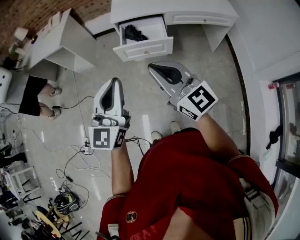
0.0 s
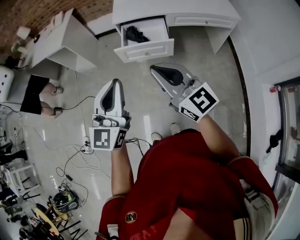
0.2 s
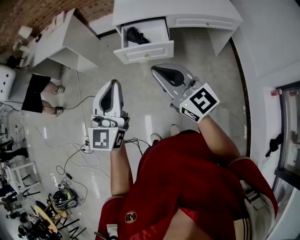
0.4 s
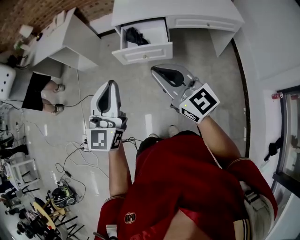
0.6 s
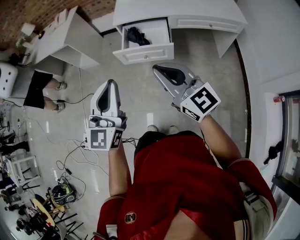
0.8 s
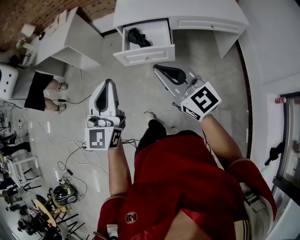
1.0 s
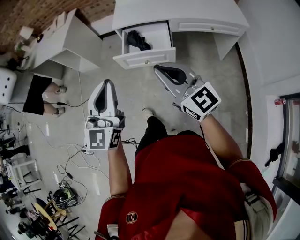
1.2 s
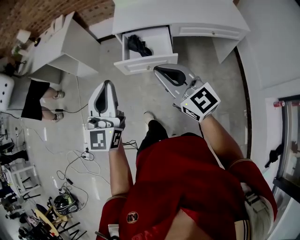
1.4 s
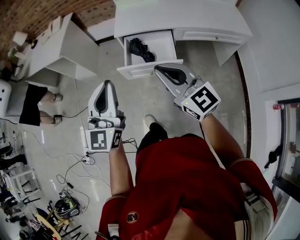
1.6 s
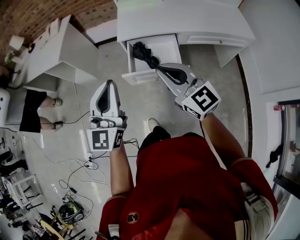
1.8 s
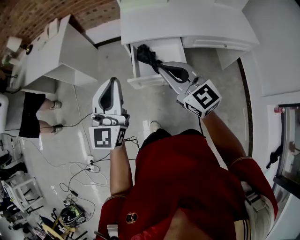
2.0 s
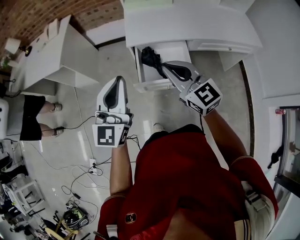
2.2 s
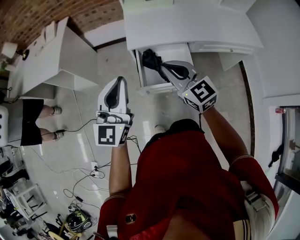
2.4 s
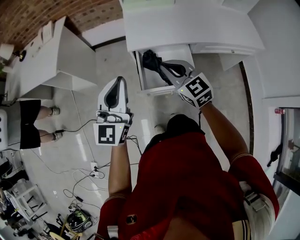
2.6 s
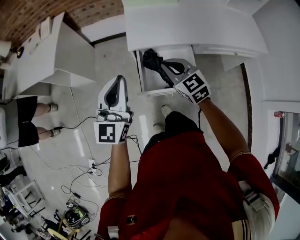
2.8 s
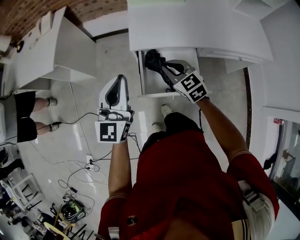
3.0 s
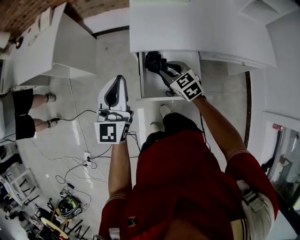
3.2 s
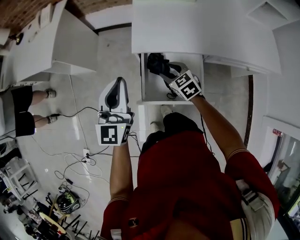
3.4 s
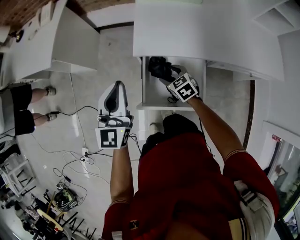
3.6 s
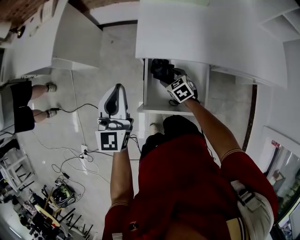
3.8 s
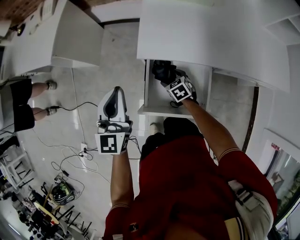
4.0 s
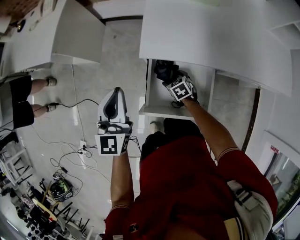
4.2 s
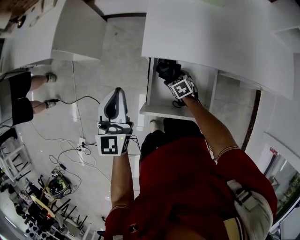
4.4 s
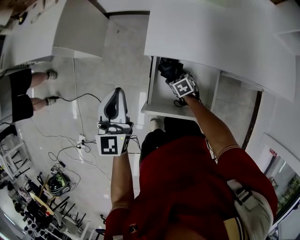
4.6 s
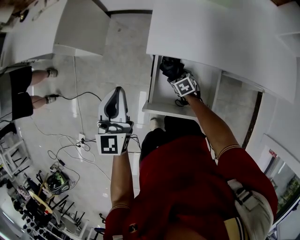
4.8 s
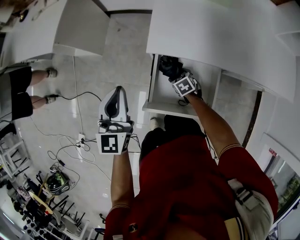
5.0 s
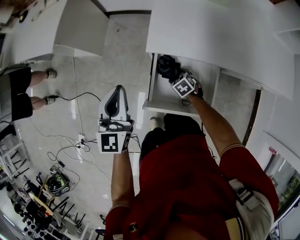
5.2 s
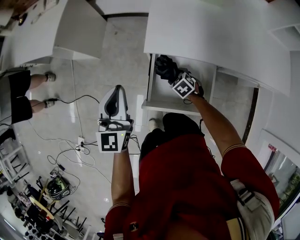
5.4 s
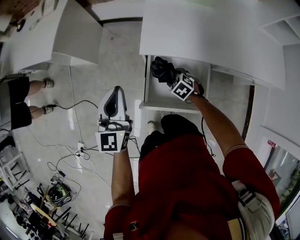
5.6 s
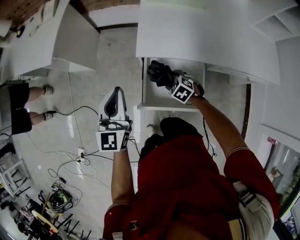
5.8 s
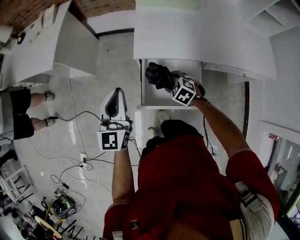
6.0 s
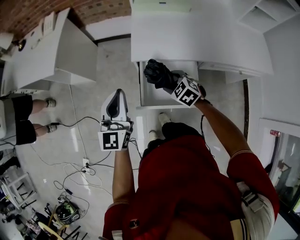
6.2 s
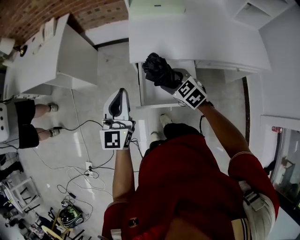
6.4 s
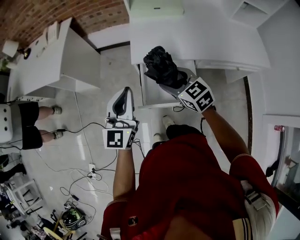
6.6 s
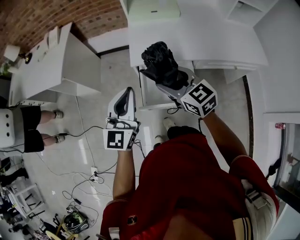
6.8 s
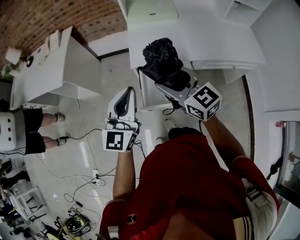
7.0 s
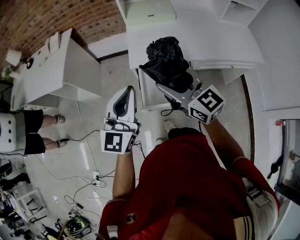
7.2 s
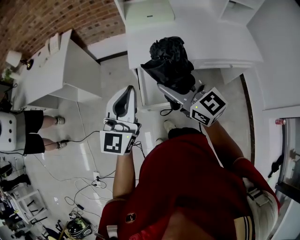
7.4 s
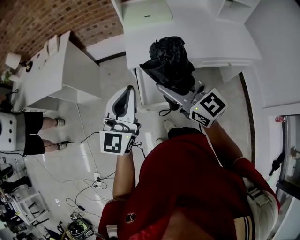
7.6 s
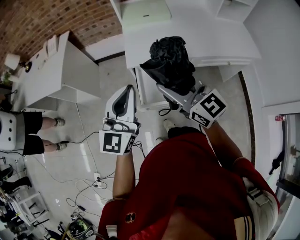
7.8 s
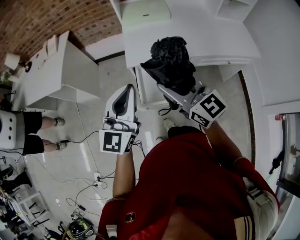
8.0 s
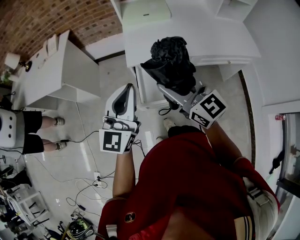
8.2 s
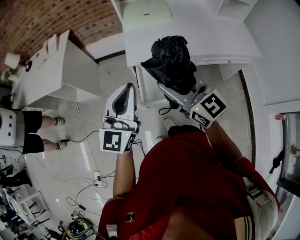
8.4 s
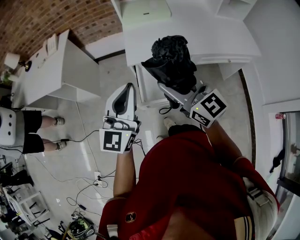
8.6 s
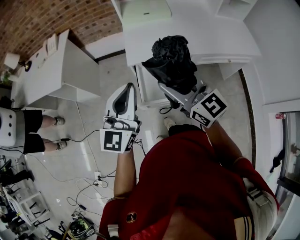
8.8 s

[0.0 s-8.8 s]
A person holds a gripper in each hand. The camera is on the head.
0.0 to 1.4 s: The left gripper goes roughly 10 cm forward; the right gripper is displaced forward and to the right by some 15 cm.
1.4 to 3.0 s: The right gripper travels forward and downward by approximately 40 cm, and angles its fingers downward, by some 30 degrees, while the left gripper goes some 35 cm forward.
3.0 to 4.4 s: The right gripper travels downward by some 30 cm, angles its fingers downward, by some 30 degrees, and opens. Meanwhile the left gripper shifts about 15 cm downward and forward.
4.4 to 5.8 s: The right gripper travels upward by approximately 10 cm, and swivels about 30 degrees; the left gripper changes place by some 5 cm.
5.8 to 7.4 s: The left gripper shifts about 20 cm upward, backward and to the right, and turns by roughly 20 degrees. Meanwhile the right gripper moves upward, roughly 40 cm, and tips its fingers upward by about 60 degrees.
7.4 to 8.8 s: Both grippers stay about where they are.

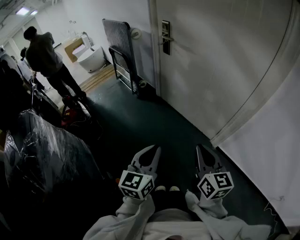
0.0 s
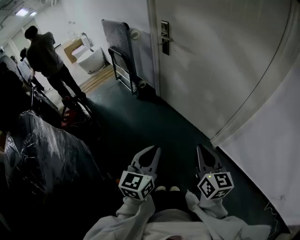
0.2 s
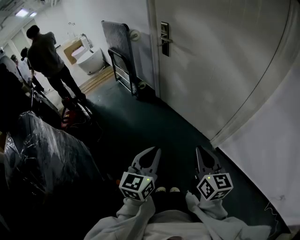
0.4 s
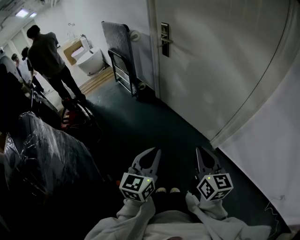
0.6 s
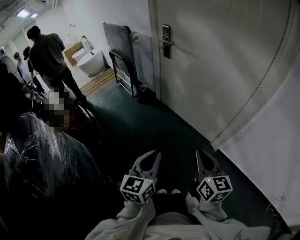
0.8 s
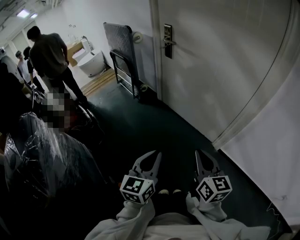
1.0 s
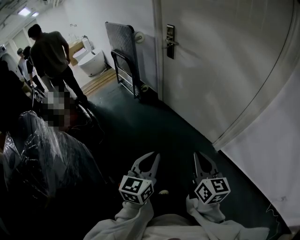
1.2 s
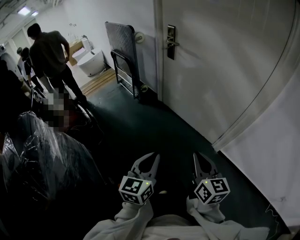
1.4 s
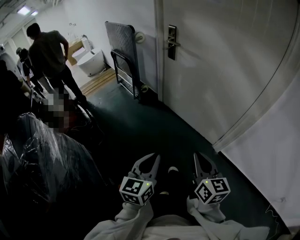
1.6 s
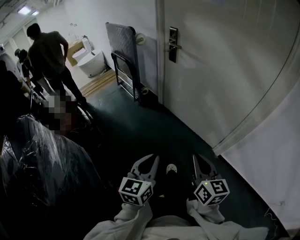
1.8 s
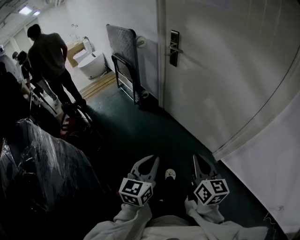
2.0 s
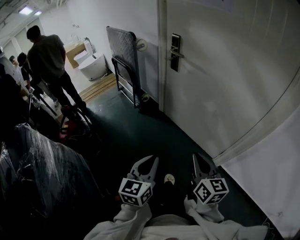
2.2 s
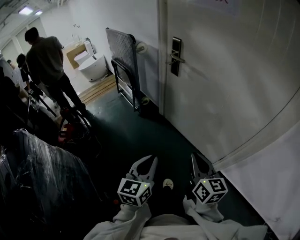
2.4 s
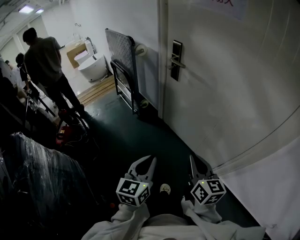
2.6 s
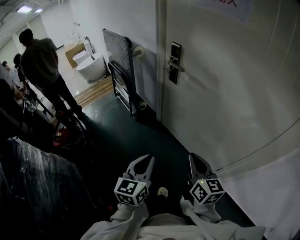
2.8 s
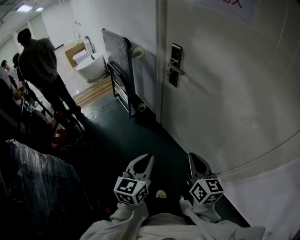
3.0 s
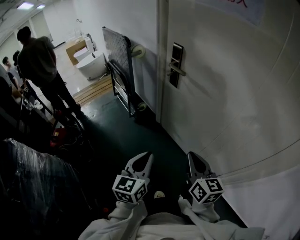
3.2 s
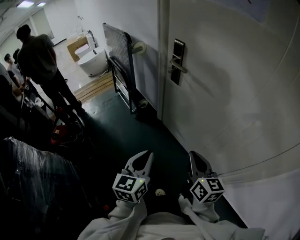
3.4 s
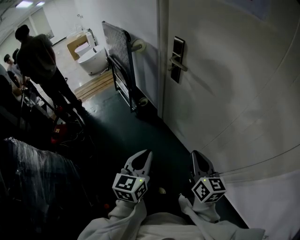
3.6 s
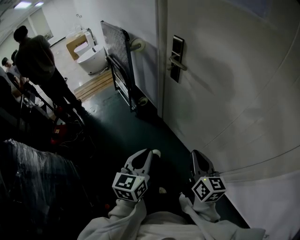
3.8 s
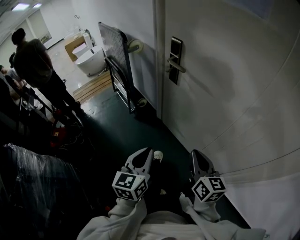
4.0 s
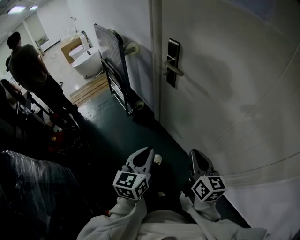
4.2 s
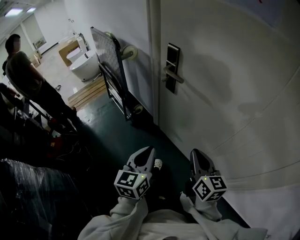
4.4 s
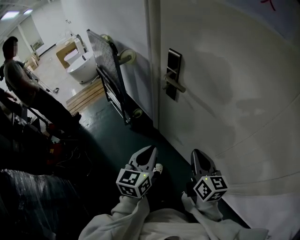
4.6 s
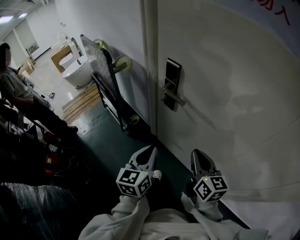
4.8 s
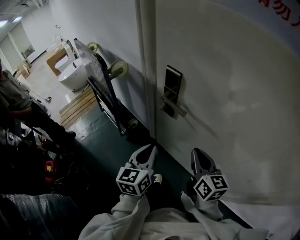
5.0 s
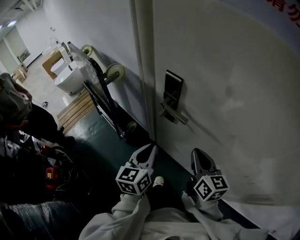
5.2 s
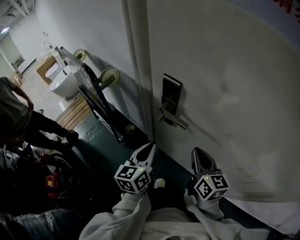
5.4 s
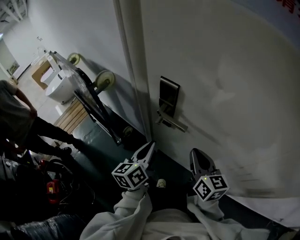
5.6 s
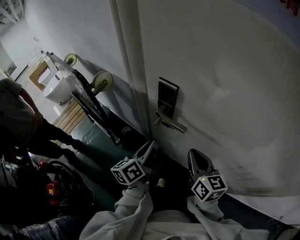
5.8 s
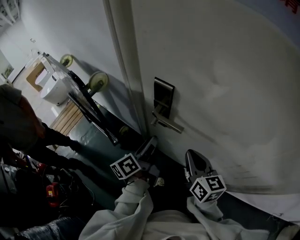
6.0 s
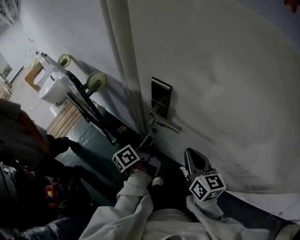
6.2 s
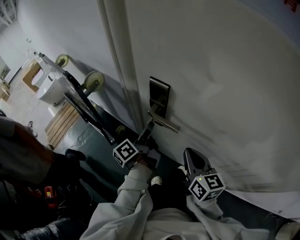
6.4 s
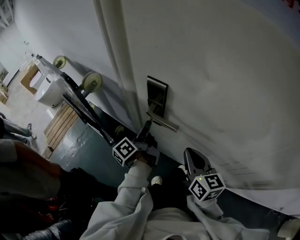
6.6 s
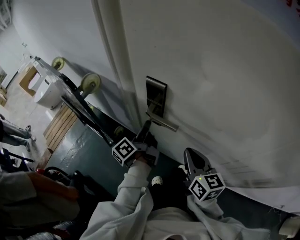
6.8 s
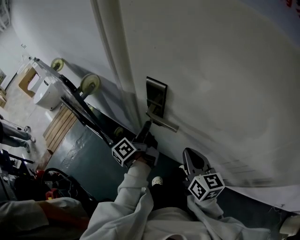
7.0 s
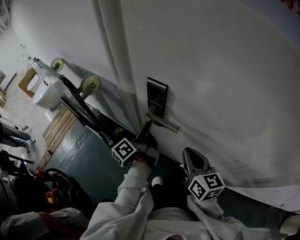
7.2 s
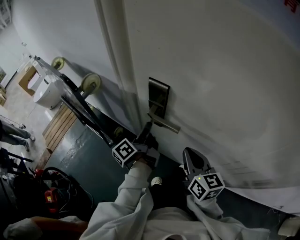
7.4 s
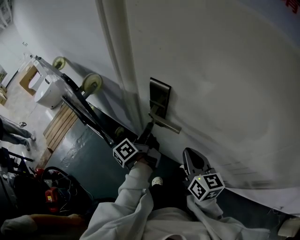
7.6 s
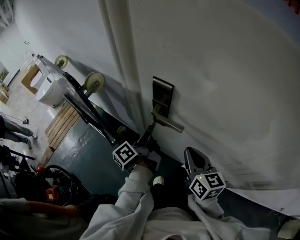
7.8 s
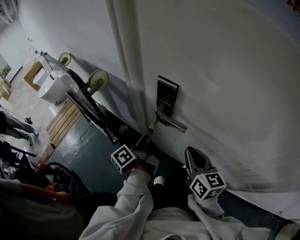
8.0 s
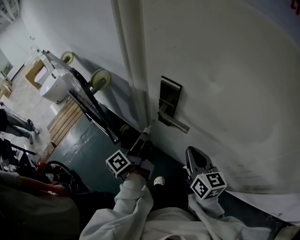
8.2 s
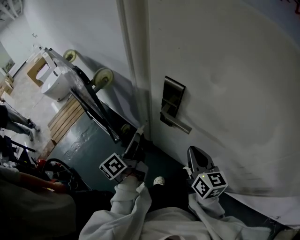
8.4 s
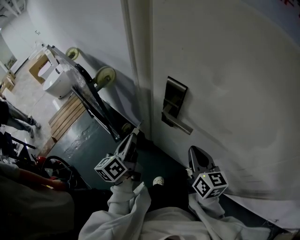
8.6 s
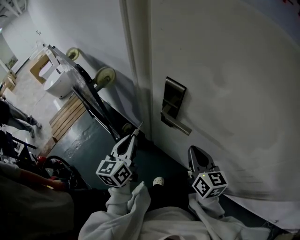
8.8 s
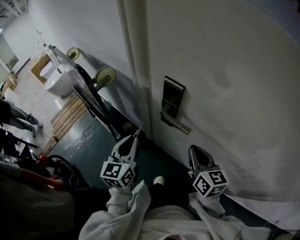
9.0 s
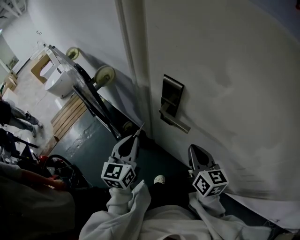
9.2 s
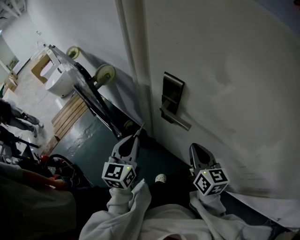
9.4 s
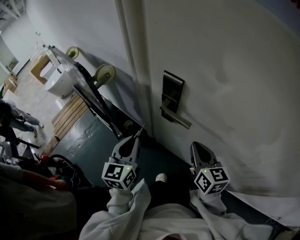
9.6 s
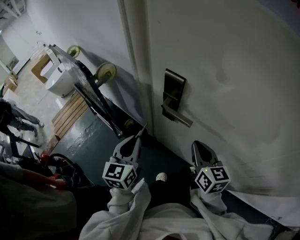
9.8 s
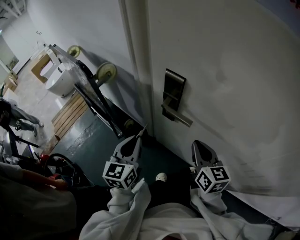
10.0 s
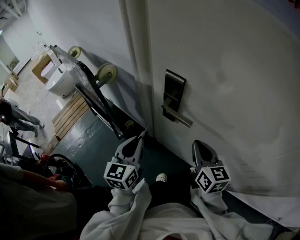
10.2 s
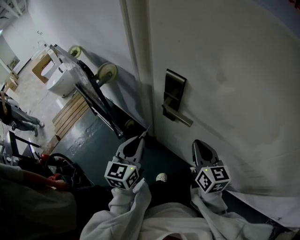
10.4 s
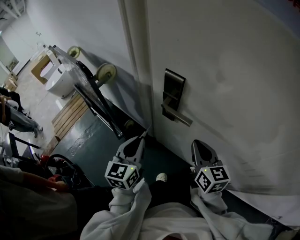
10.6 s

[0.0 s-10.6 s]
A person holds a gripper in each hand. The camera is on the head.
0.0 to 1.6 s: Both grippers move to the left, roughly 5 cm.
1.6 to 3.0 s: The grippers both shift forward by roughly 30 cm.
3.0 to 4.6 s: Both grippers move forward, some 20 cm.
4.6 to 6.0 s: The right gripper goes about 15 cm forward. Meanwhile the left gripper is displaced forward by approximately 25 cm, rolls counterclockwise, seen from behind, by some 50 degrees, and opens.
6.0 to 7.6 s: The left gripper goes approximately 5 cm forward, and closes up.
7.6 to 9.0 s: The left gripper is displaced to the left and backward by about 10 cm, and twists roughly 70 degrees clockwise, seen from behind.
9.0 to 10.6 s: The grippers make only small movements.

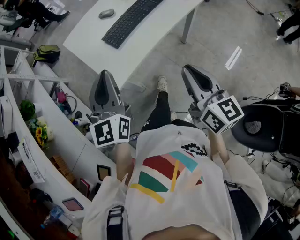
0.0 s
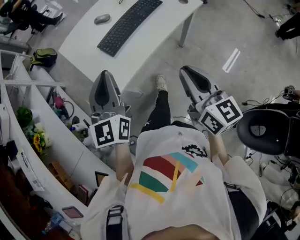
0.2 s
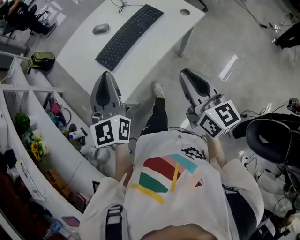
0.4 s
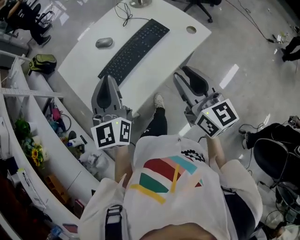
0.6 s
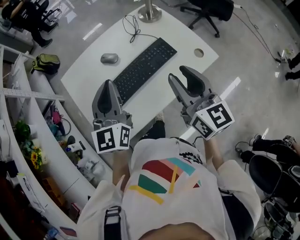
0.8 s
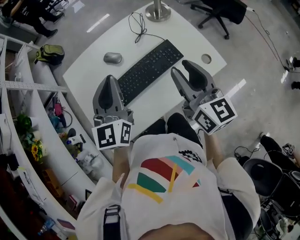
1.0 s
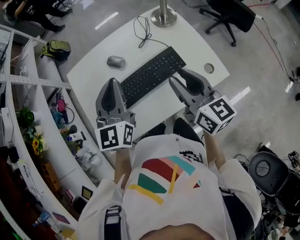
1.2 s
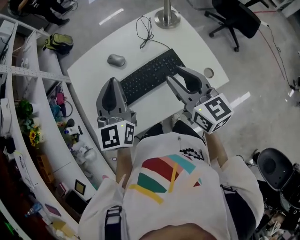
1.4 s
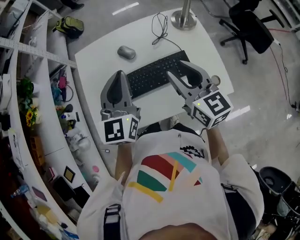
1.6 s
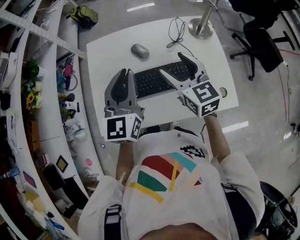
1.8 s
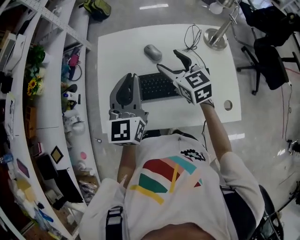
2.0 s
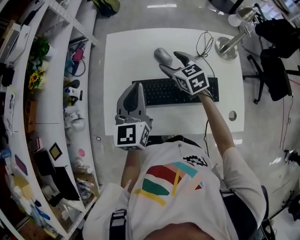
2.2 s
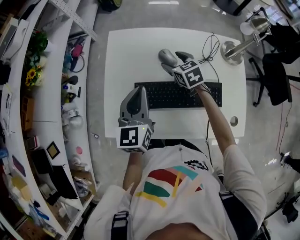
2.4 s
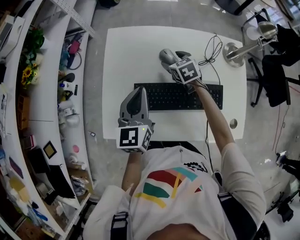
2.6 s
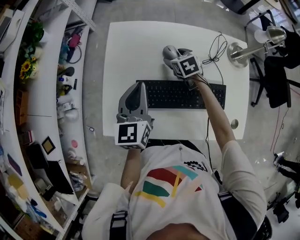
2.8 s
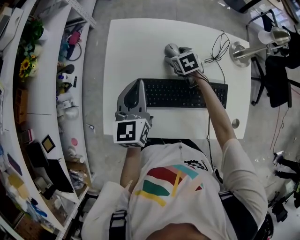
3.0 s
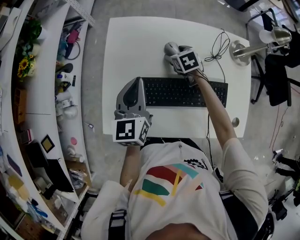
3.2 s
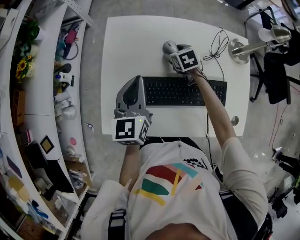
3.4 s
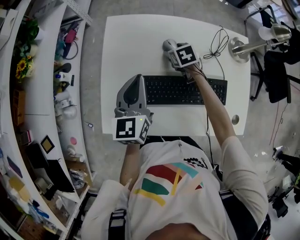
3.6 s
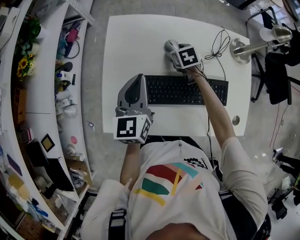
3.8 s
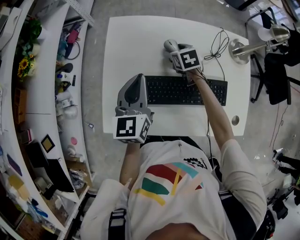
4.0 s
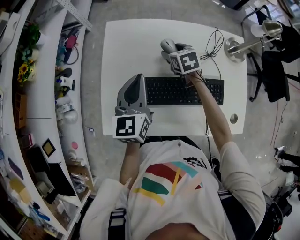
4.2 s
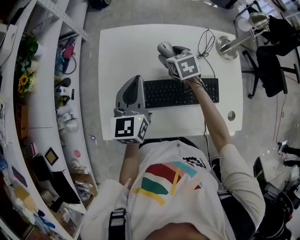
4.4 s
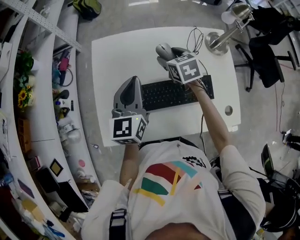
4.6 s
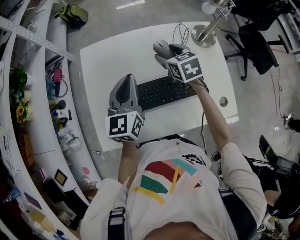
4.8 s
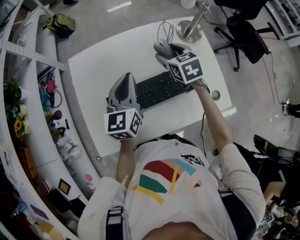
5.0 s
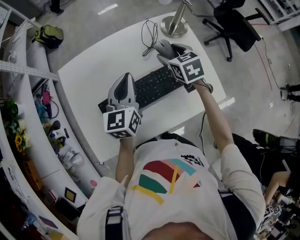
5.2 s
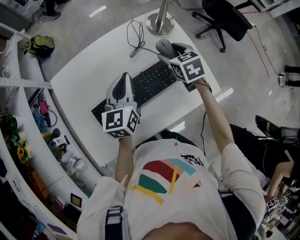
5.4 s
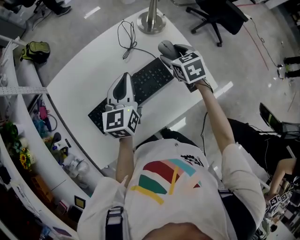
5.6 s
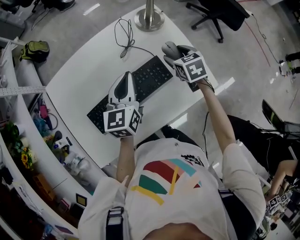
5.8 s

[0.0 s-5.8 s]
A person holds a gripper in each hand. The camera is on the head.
0.0 to 1.4 s: The left gripper moves forward and to the right, roughly 35 cm. Meanwhile the right gripper goes some 40 cm forward, swivels some 30 degrees, and opens up.
1.4 to 2.8 s: The right gripper shifts approximately 40 cm forward, downward and to the left, tips its fingers downward by approximately 40 degrees, and opens; the left gripper heads to the left, downward and forward, covering some 20 cm, and rotates approximately 30 degrees.
2.8 to 4.4 s: The right gripper shifts some 10 cm upward.
4.4 to 5.8 s: The right gripper changes place by approximately 35 cm, and rotates roughly 30 degrees. Meanwhile the left gripper changes place by some 25 cm, and swivels some 30 degrees.
